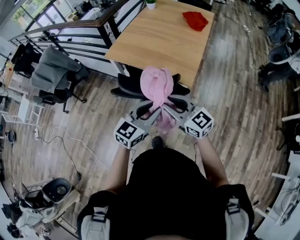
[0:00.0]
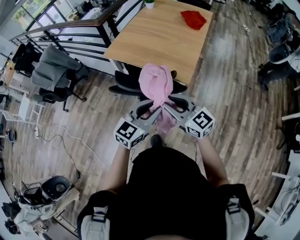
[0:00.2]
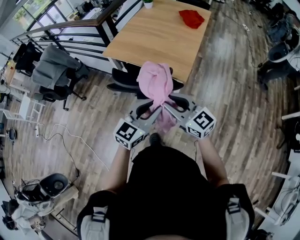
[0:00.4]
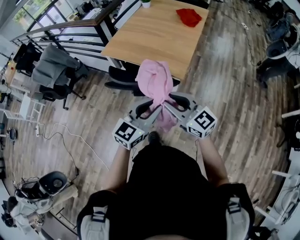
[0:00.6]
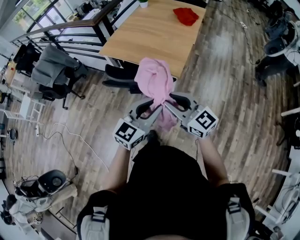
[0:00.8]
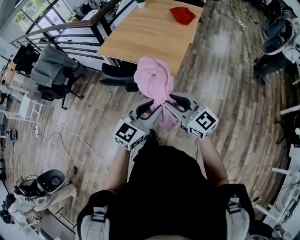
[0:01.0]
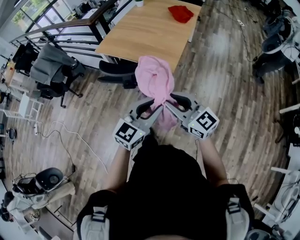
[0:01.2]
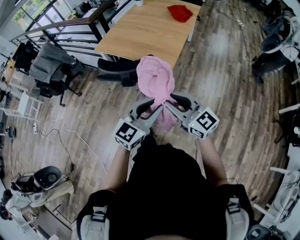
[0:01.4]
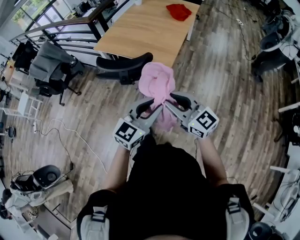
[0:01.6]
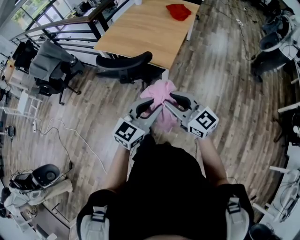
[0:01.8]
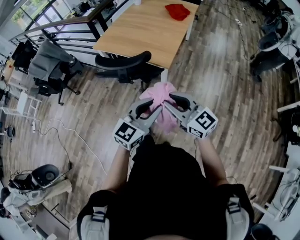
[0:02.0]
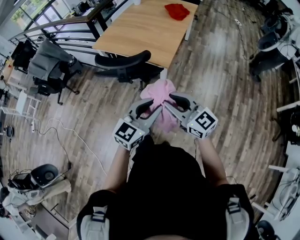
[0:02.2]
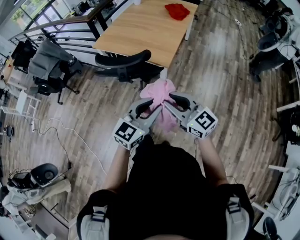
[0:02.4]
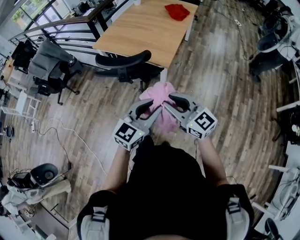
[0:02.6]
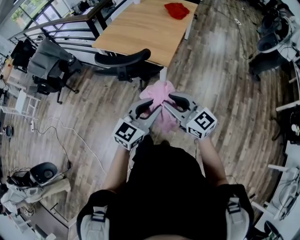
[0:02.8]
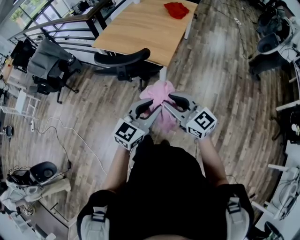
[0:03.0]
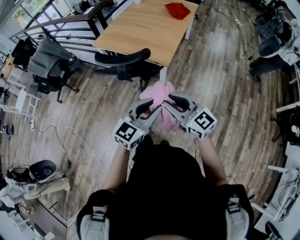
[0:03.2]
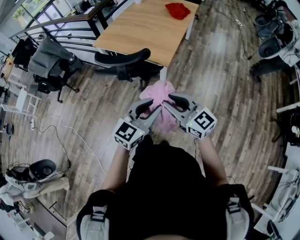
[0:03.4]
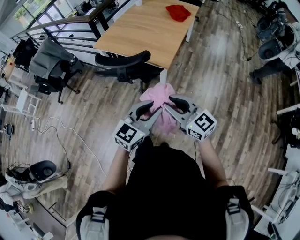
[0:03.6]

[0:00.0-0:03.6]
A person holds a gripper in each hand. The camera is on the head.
0:00.0 to 0:01.8: Both grippers move backward and to the right, roughly 25 cm.
0:01.8 to 0:03.6: The grippers stay close to where they were, moving slightly.

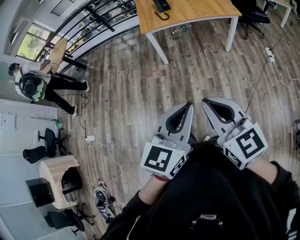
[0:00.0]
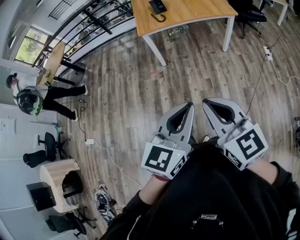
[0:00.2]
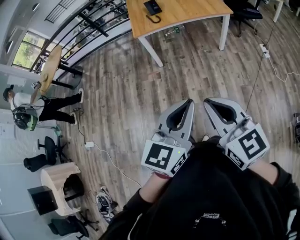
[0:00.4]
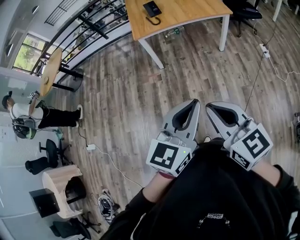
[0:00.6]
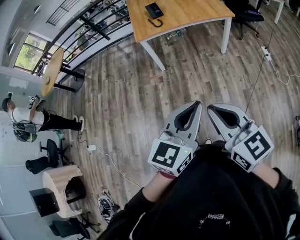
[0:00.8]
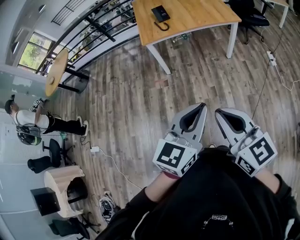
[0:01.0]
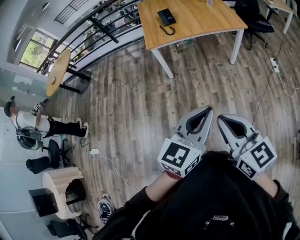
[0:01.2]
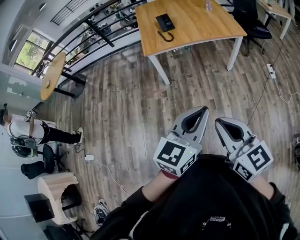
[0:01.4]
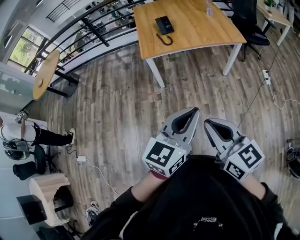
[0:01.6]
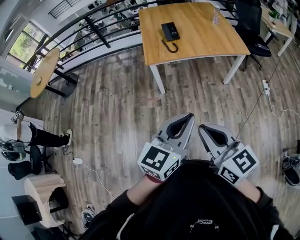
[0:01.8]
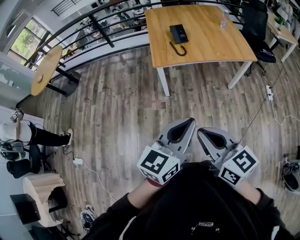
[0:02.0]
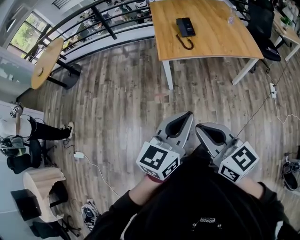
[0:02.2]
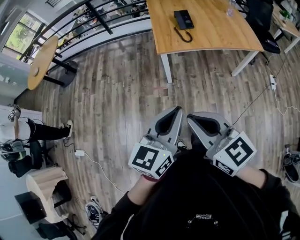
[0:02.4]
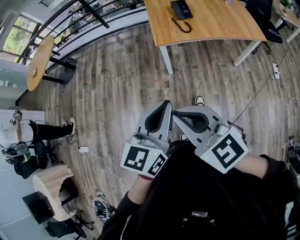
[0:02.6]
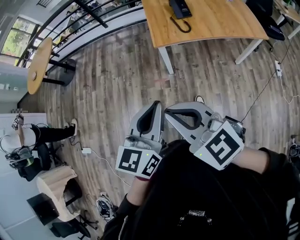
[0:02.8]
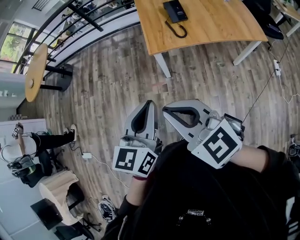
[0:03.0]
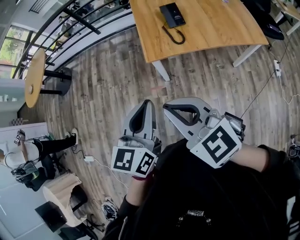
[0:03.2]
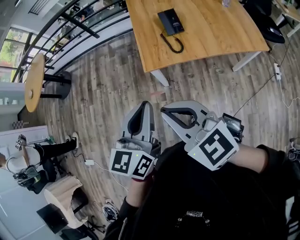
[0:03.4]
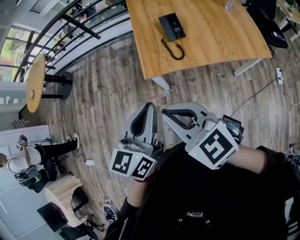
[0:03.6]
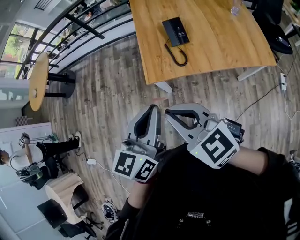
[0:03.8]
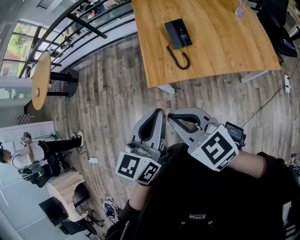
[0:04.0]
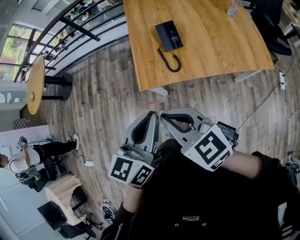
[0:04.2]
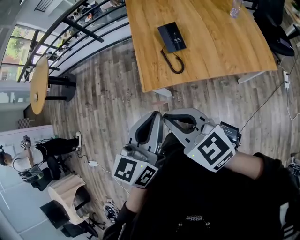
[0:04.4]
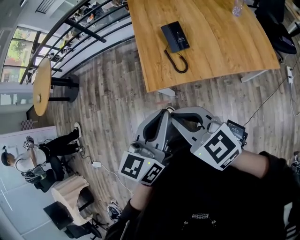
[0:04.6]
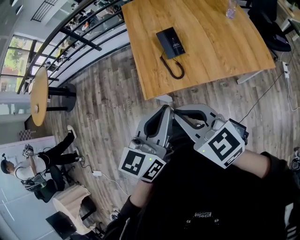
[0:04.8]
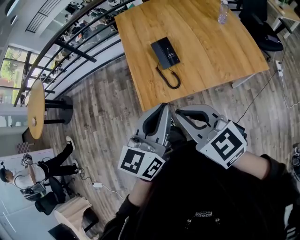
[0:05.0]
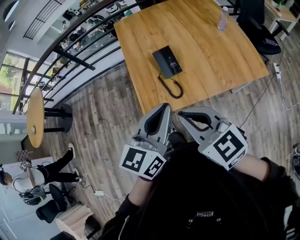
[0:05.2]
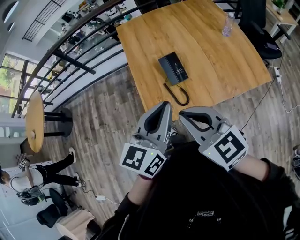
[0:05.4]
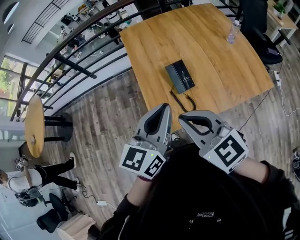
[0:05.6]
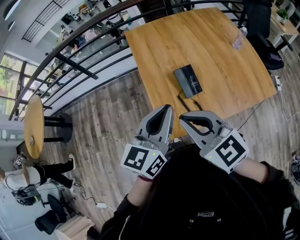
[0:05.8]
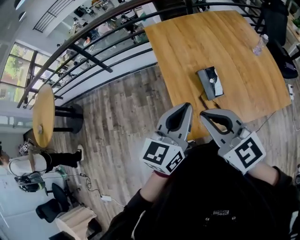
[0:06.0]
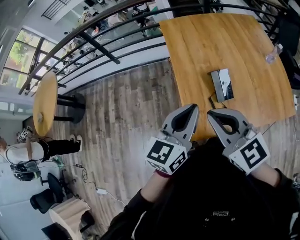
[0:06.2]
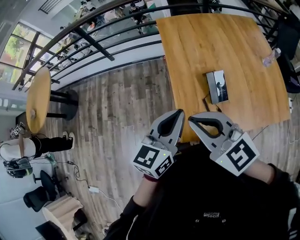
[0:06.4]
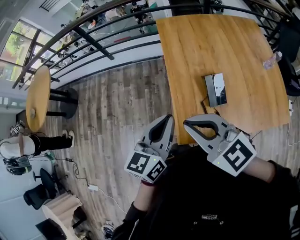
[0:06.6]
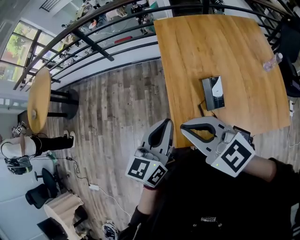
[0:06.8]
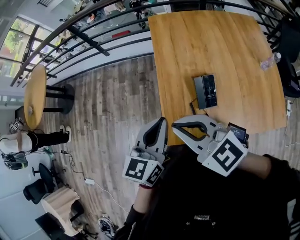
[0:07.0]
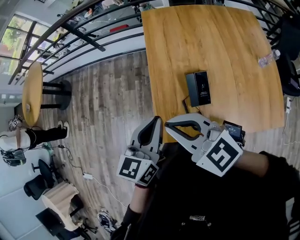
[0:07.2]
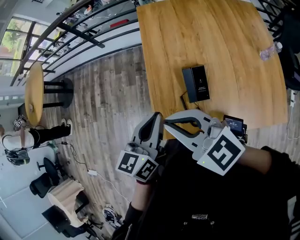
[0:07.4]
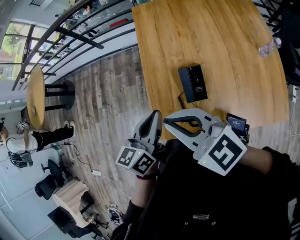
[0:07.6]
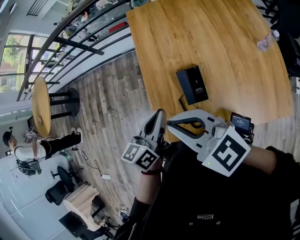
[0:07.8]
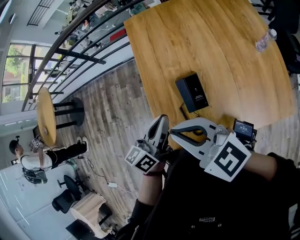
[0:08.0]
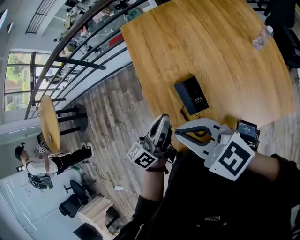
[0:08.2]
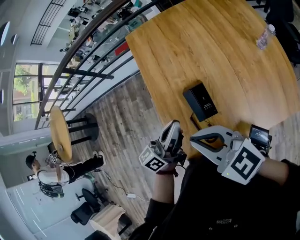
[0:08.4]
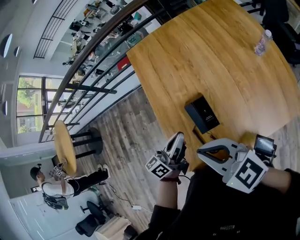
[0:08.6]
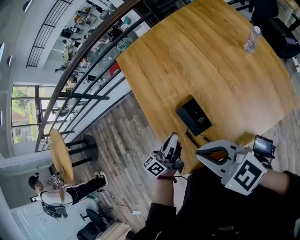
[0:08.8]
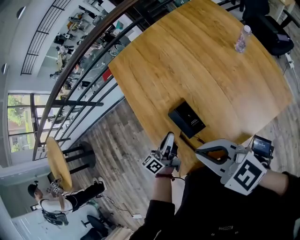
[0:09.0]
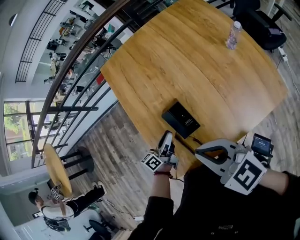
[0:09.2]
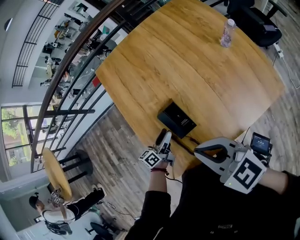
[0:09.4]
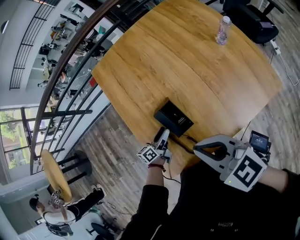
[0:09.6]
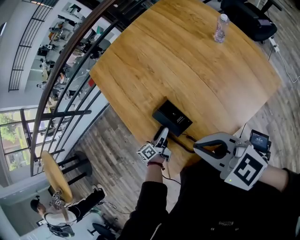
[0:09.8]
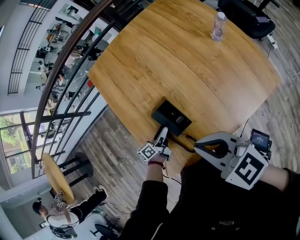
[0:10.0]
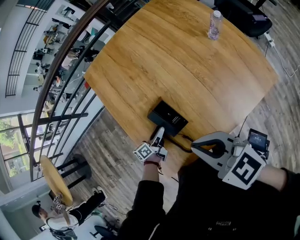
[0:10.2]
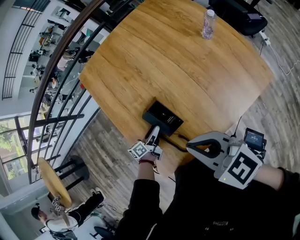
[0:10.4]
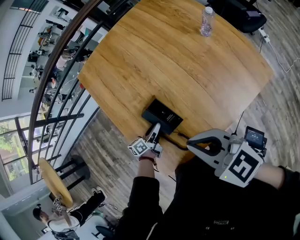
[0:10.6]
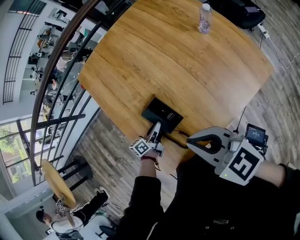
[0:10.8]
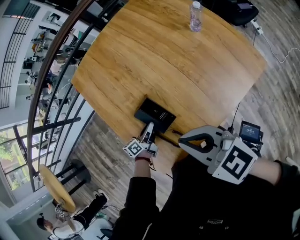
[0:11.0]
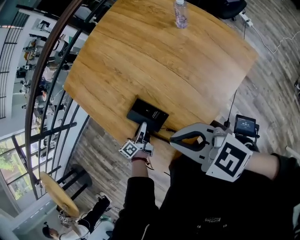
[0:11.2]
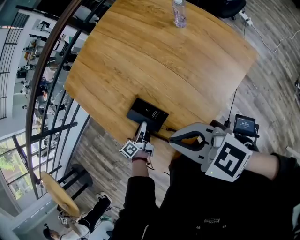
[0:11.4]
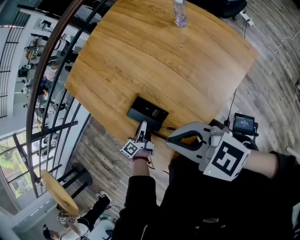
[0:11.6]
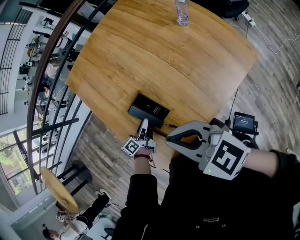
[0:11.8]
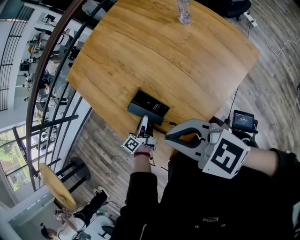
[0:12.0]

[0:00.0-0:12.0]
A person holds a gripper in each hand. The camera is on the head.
0:00.0 to 0:01.6: The grippers both shift forward by approximately 15 cm.
0:01.6 to 0:03.0: Both grippers travel together forward and to the left, roughly 30 cm. The right gripper changes its angle by roughly 20 degrees. Meanwhile the left gripper changes its angle by approximately 20 degrees.
0:03.0 to 0:04.4: The right gripper heads forward and to the right, covering some 25 cm; the left gripper moves to the right and forward, approximately 25 cm.
0:04.4 to 0:06.0: The two grippers go about 25 cm forward.
0:06.0 to 0:07.6: The left gripper travels downward and forward by about 10 cm, and swivels some 30 degrees; the right gripper moves to the right and forward, roughly 10 cm, and rotates some 30 degrees.
0:07.6 to 0:09.0: The left gripper heads downward, forward and to the right, covering approximately 20 cm, and swivels roughly 30 degrees; the right gripper moves to the right, some 15 cm, and rotates roughly 20 degrees.
0:09.0 to 0:10.4: The right gripper shifts approximately 5 cm to the right. Meanwhile the left gripper is displaced downward by roughly 15 cm, rotates some 20 degrees, and opens its fingers.
0:10.4 to 0:12.0: The left gripper closes its fingers.

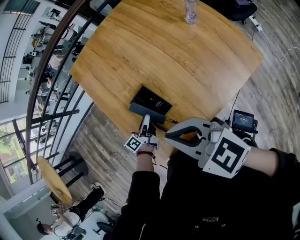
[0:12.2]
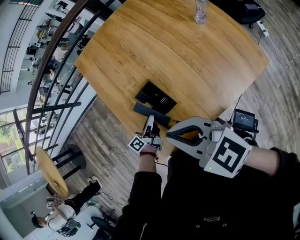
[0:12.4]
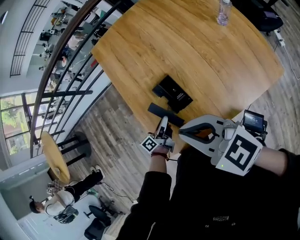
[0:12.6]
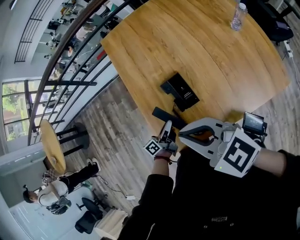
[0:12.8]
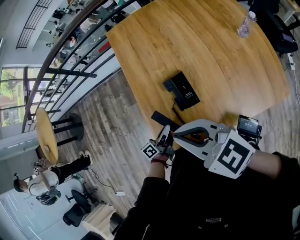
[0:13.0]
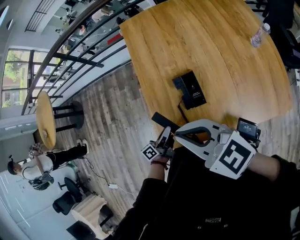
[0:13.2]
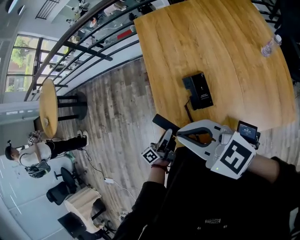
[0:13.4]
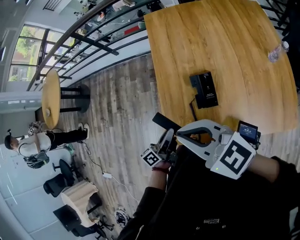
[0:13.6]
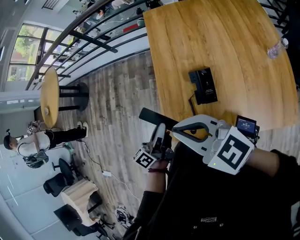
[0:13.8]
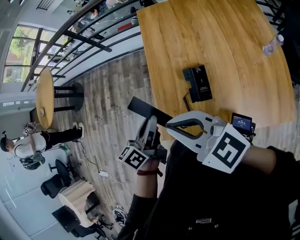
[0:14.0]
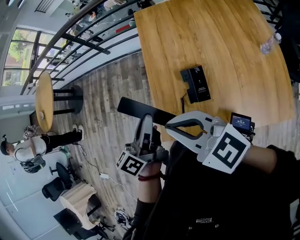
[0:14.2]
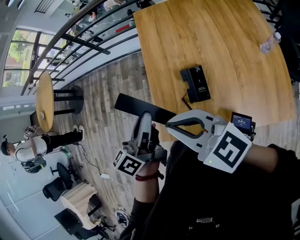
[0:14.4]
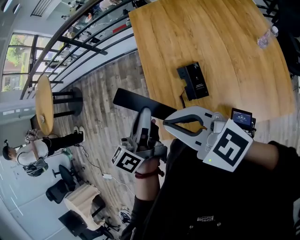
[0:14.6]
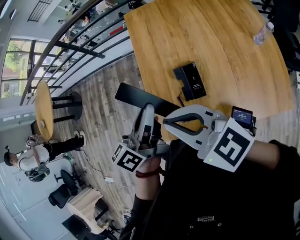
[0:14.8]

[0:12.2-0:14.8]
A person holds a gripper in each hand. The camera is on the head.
0:12.2 to 0:13.4: The right gripper is displaced to the left by roughly 10 cm, and swivels some 30 degrees, while the left gripper goes some 20 cm to the left, backward and upward, and swivels some 20 degrees.
0:13.4 to 0:14.8: The left gripper moves upward, roughly 25 cm, and rotates some 20 degrees.

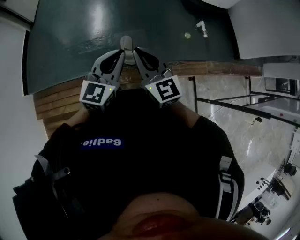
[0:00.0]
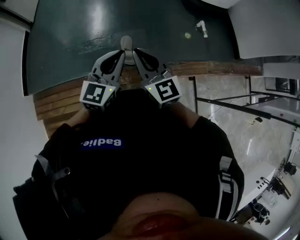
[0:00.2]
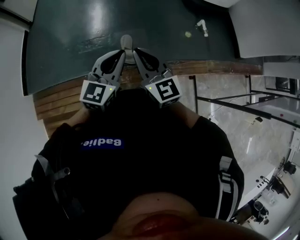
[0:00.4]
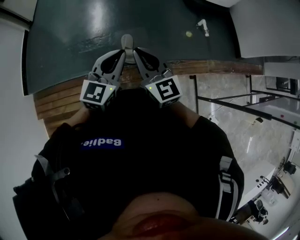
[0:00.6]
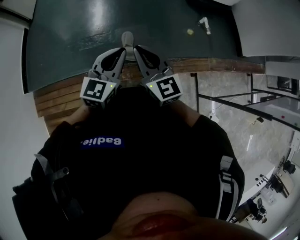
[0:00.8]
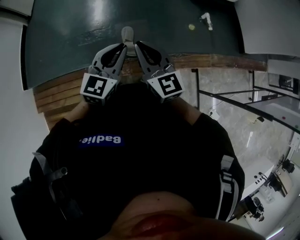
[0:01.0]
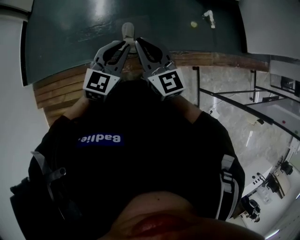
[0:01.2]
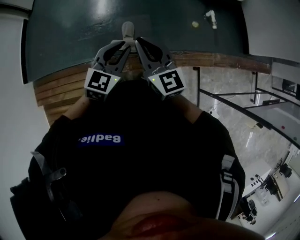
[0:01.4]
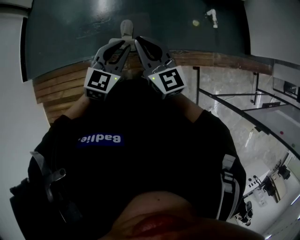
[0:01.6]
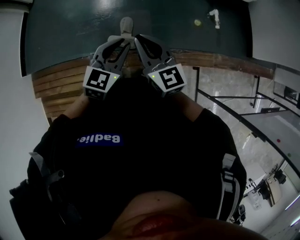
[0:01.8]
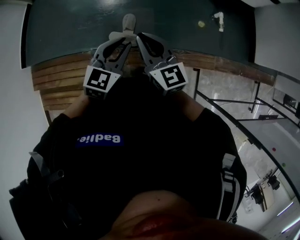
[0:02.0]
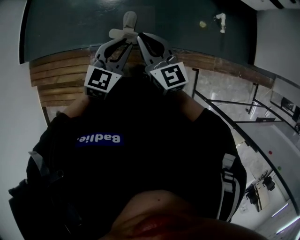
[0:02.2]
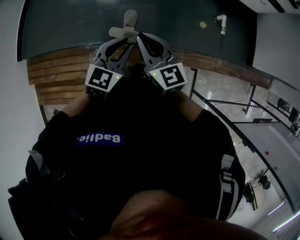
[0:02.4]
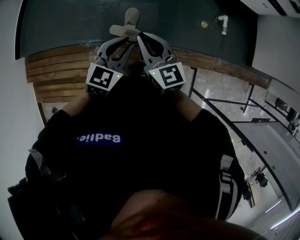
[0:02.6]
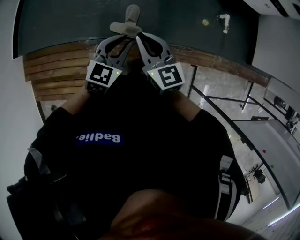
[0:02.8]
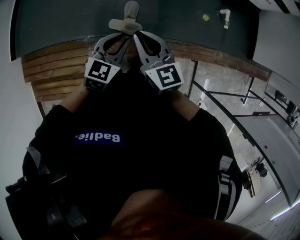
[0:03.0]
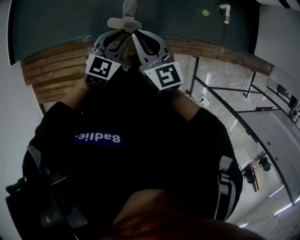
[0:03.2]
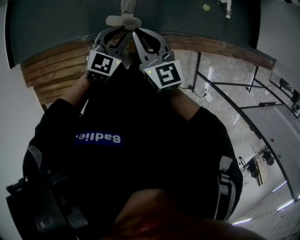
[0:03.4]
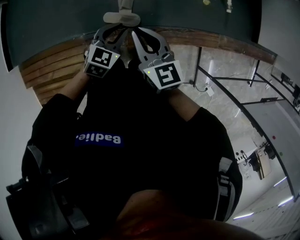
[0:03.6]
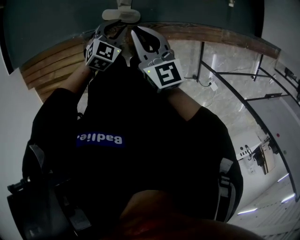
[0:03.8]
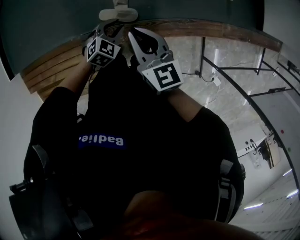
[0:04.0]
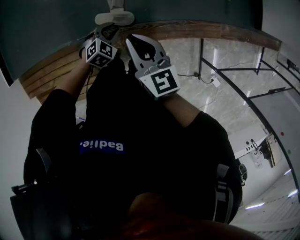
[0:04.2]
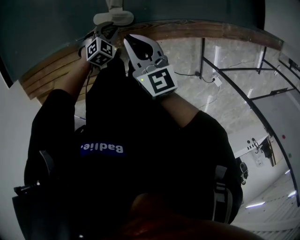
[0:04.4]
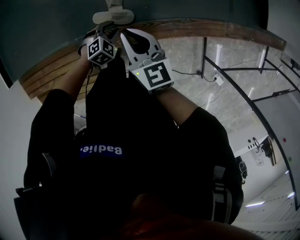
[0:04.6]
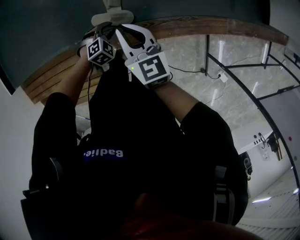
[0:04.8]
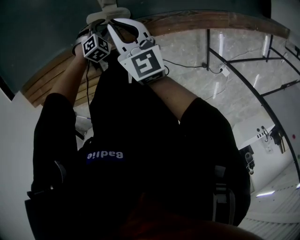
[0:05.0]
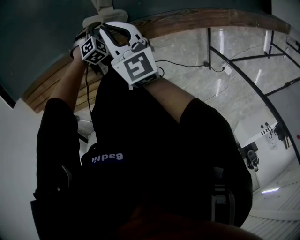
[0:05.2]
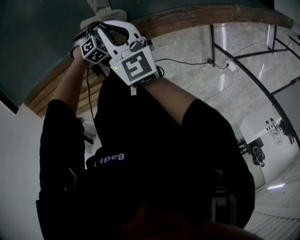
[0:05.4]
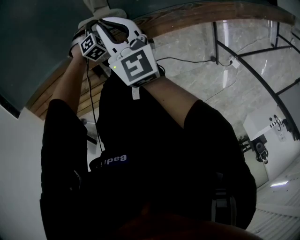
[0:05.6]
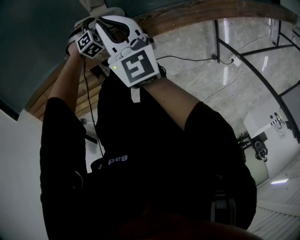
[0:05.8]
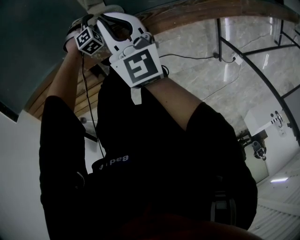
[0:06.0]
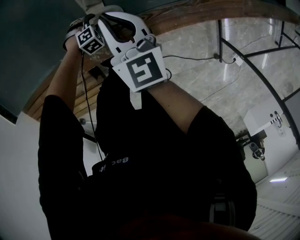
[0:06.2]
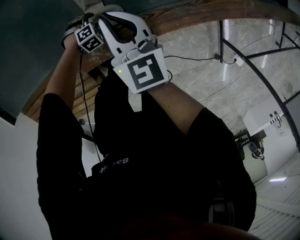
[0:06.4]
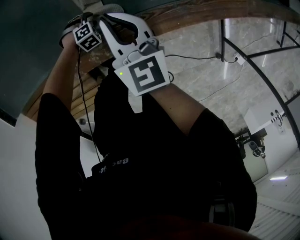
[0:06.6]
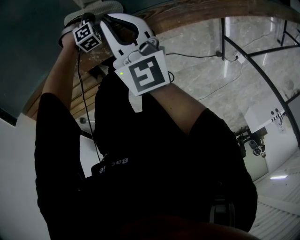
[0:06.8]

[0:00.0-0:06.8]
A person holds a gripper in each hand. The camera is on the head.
0:00.0 to 0:01.4: The left gripper moves downward, some 10 cm. The right gripper goes about 5 cm forward.
0:01.4 to 0:02.8: Both grippers move downward and forward, some 10 cm.
0:02.8 to 0:04.0: The left gripper travels downward by about 20 cm, and rotates approximately 30 degrees. The right gripper moves downward, some 10 cm.
0:04.0 to 0:05.4: The right gripper is displaced downward and forward by some 20 cm. The left gripper shifts roughly 30 cm downward, turns by roughly 30 degrees, and opens.
0:05.4 to 0:06.8: The grippers both shift downward by about 15 cm. The left gripper closes up.
